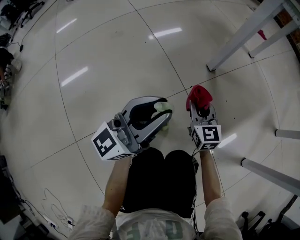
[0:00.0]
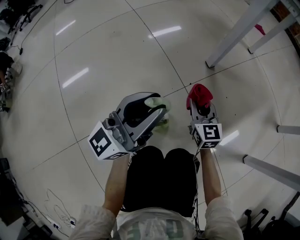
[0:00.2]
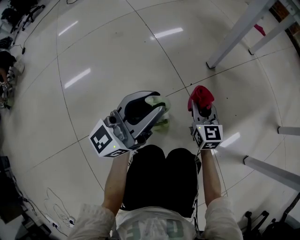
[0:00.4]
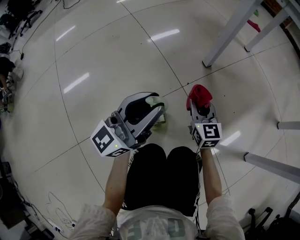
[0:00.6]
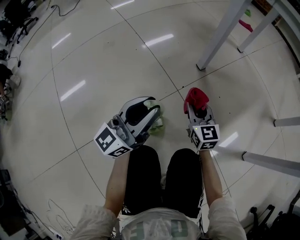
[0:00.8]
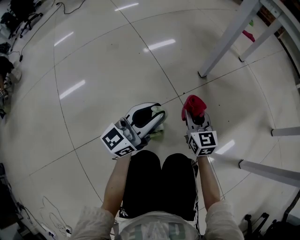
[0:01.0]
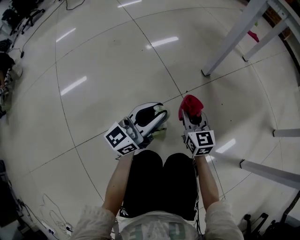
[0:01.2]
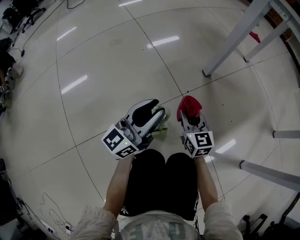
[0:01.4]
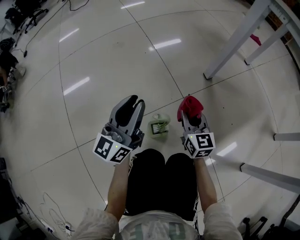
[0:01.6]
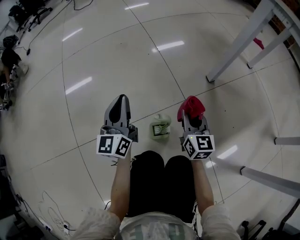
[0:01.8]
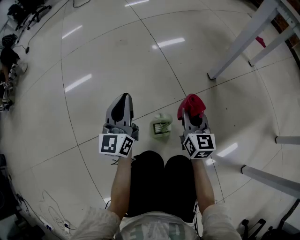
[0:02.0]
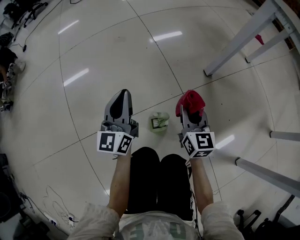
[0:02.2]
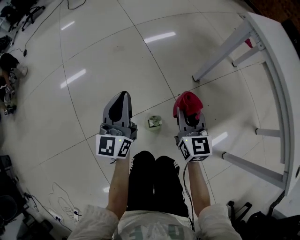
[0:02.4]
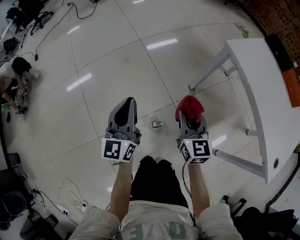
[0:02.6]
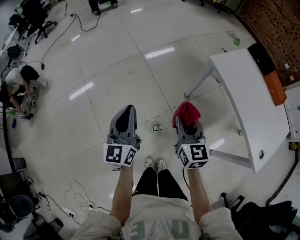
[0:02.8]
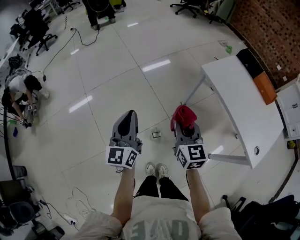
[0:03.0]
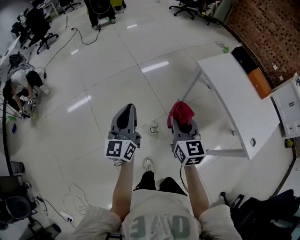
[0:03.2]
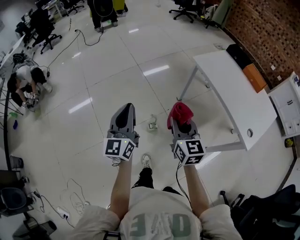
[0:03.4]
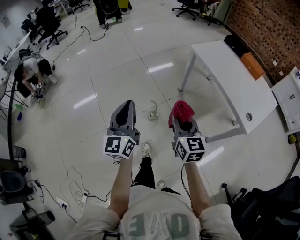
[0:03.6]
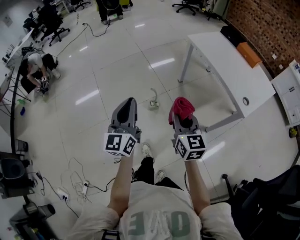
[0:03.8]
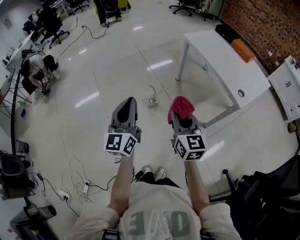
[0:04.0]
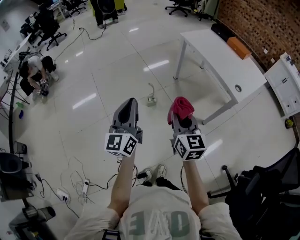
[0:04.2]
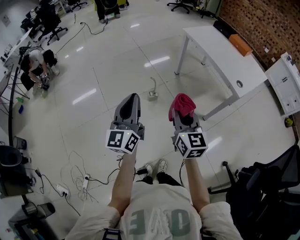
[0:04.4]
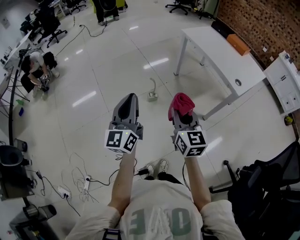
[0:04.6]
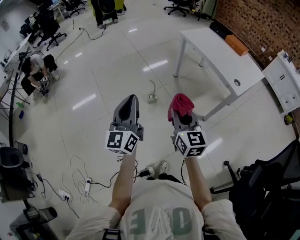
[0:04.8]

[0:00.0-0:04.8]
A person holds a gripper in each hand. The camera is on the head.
0:00.0 to 0:01.6: The left gripper travels to the left and downward by about 10 cm, and rotates approximately 30 degrees.
0:01.6 to 0:03.2: Both grippers move upward, some 60 cm.
0:03.2 to 0:04.8: The two grippers travel together, backward, approximately 50 cm.

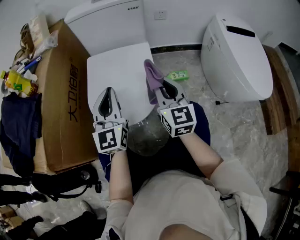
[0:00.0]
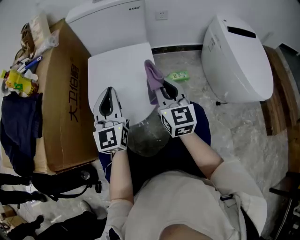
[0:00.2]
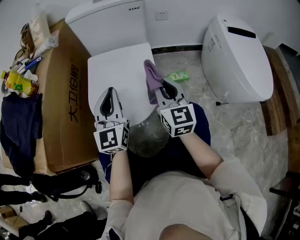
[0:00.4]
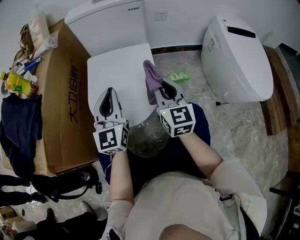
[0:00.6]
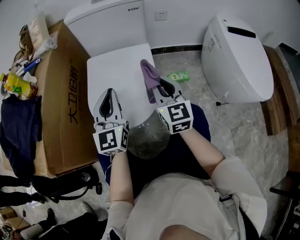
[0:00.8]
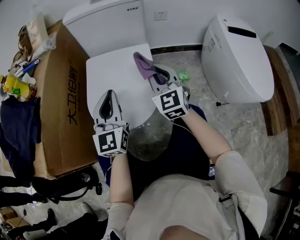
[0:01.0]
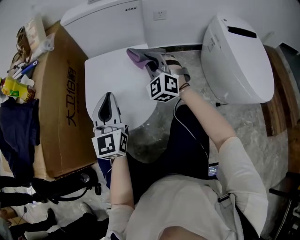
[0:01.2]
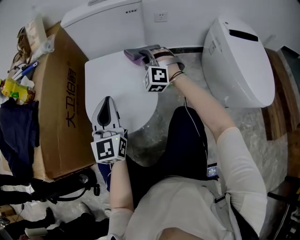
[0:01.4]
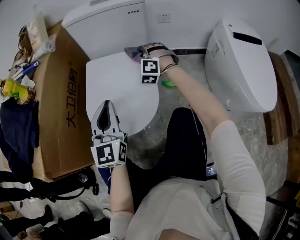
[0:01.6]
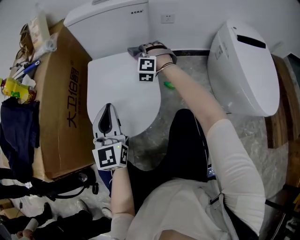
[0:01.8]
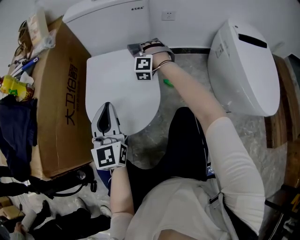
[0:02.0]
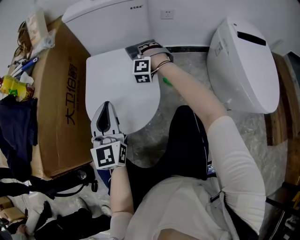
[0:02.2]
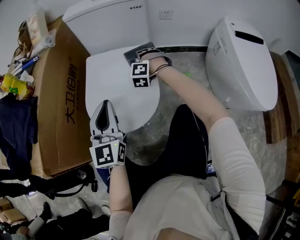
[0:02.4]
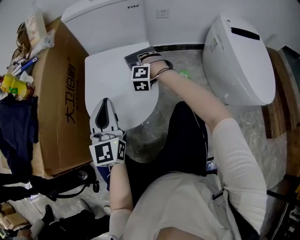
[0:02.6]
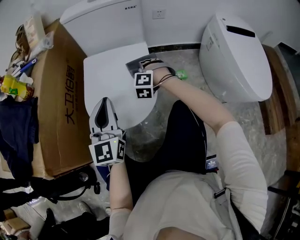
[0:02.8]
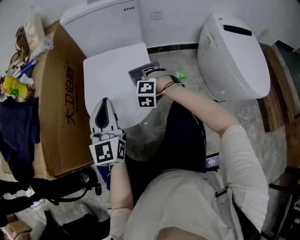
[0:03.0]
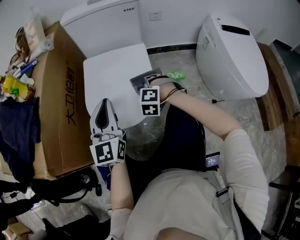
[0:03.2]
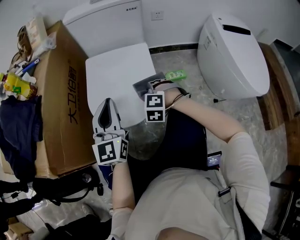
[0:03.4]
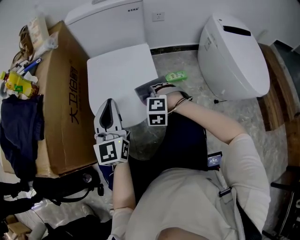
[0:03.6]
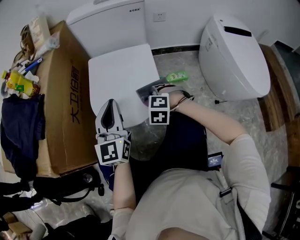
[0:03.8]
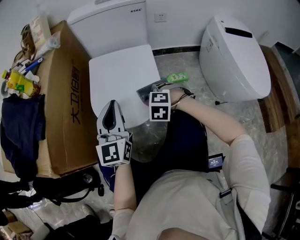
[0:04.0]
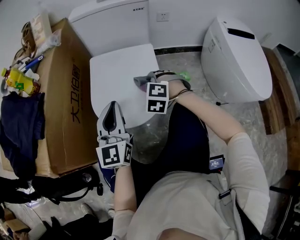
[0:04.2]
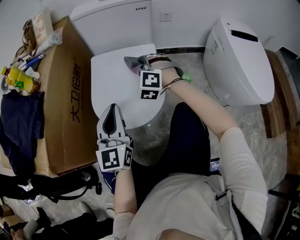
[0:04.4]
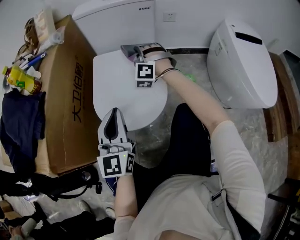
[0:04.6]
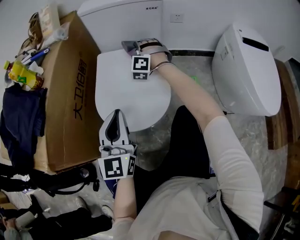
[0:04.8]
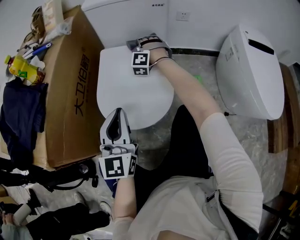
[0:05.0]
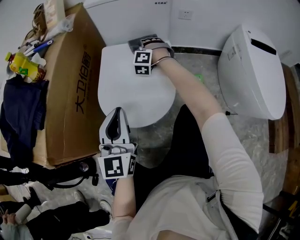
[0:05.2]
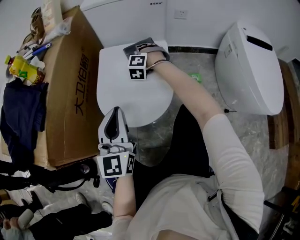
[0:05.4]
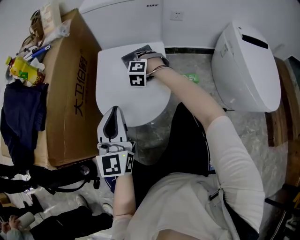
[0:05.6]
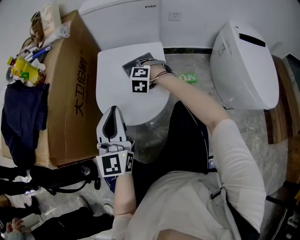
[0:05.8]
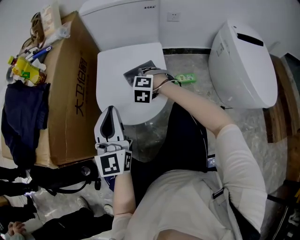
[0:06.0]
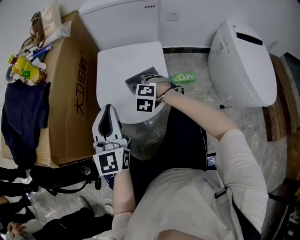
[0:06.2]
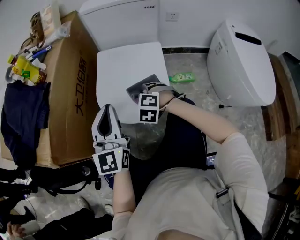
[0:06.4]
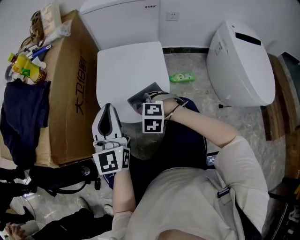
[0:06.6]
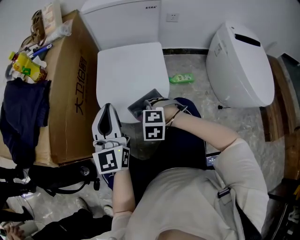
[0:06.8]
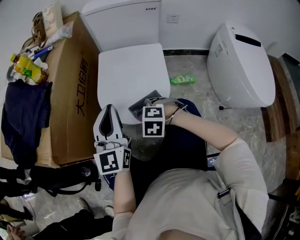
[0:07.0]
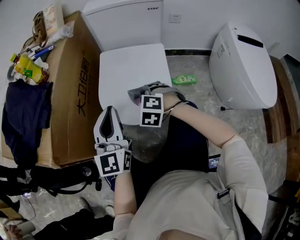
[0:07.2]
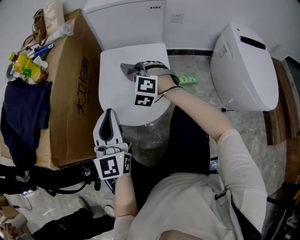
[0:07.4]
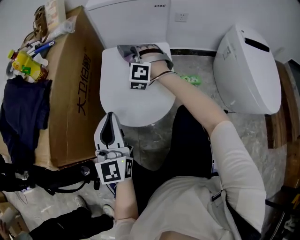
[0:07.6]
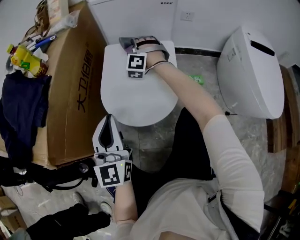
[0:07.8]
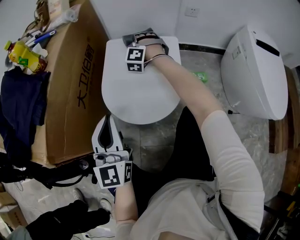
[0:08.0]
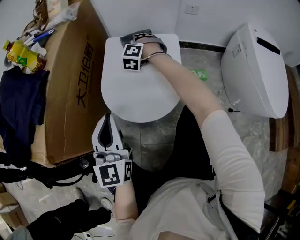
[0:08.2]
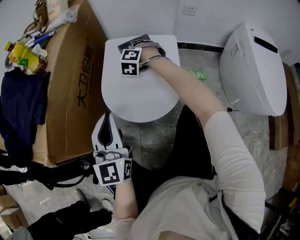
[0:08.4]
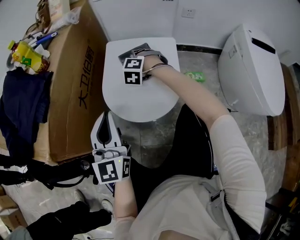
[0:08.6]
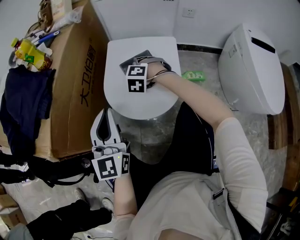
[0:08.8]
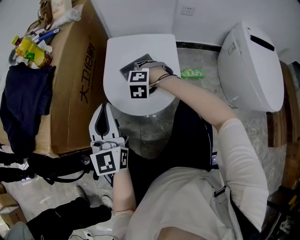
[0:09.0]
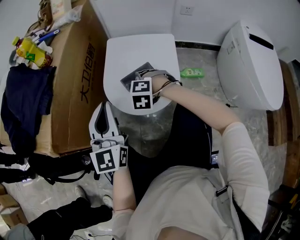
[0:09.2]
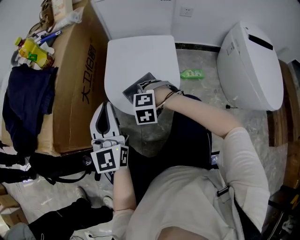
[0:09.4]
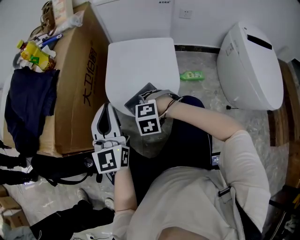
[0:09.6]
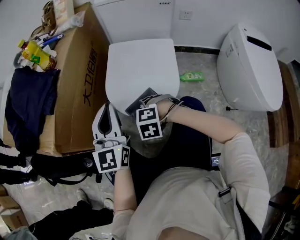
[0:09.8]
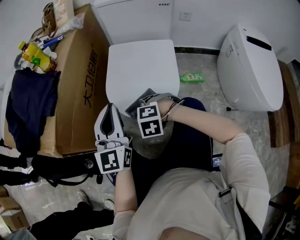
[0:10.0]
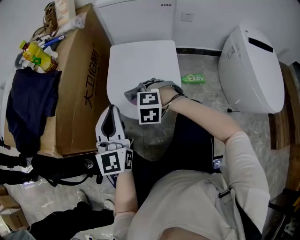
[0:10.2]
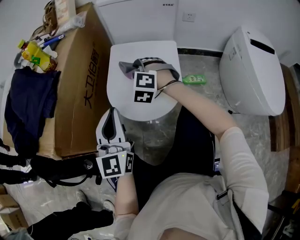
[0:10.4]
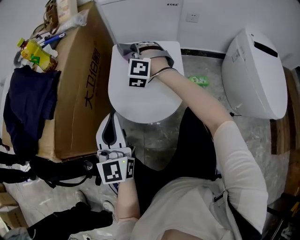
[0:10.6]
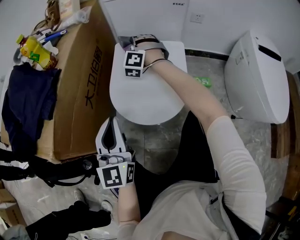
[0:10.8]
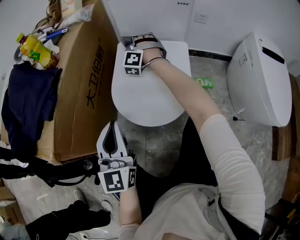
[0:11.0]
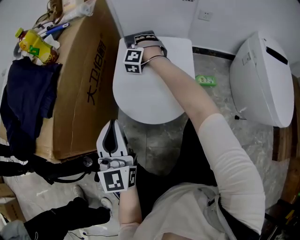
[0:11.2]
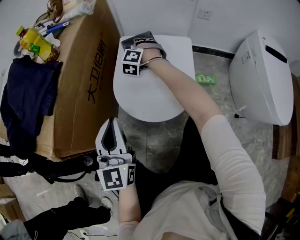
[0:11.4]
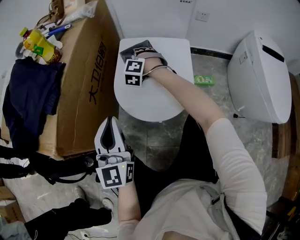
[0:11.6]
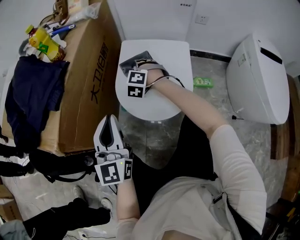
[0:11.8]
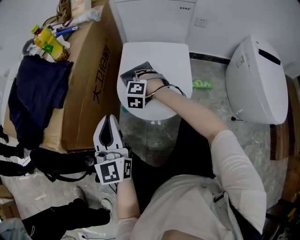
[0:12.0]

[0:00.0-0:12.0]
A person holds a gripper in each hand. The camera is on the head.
0:00.0 to 0:01.6: The right gripper goes roughly 25 cm forward, and twists roughly 70 degrees counterclockwise, seen from behind.
0:01.6 to 0:03.0: The right gripper is displaced backward and downward by some 15 cm, and changes its angle by some 20 degrees.
0:03.0 to 0:04.4: The right gripper is displaced upward by about 10 cm, and reaches roughly 10 cm backward, then returns.
0:04.4 to 0:06.0: The right gripper moves downward, roughly 10 cm, reaches roughly 15 cm forward, then returns, and rotates roughly 20 degrees.
0:06.0 to 0:07.6: The right gripper goes approximately 15 cm upward and forward, and tips its fingers upward by some 30 degrees.
0:07.6 to 0:09.0: The right gripper goes approximately 15 cm backward and downward, and points its fingers roughly 30 degrees further downward.
0:09.0 to 0:10.4: The right gripper goes roughly 10 cm upward, and reaches roughly 15 cm backward, then returns.
0:10.4 to 0:12.0: The left gripper travels to the left by some 5 cm; the right gripper is displaced downward and to the left by approximately 10 cm, and goes forward and returns, roughly 20 cm each way.

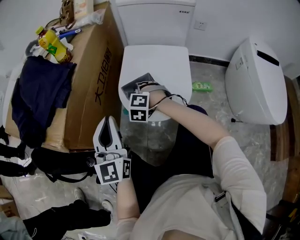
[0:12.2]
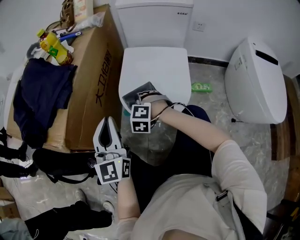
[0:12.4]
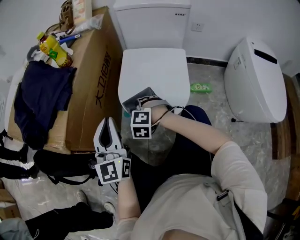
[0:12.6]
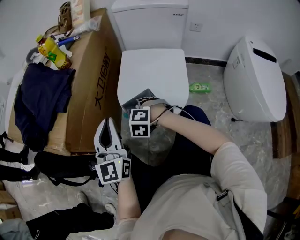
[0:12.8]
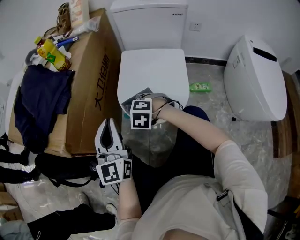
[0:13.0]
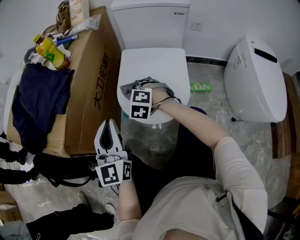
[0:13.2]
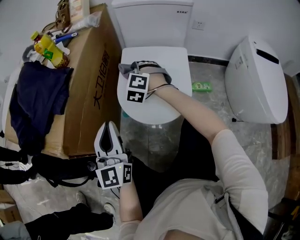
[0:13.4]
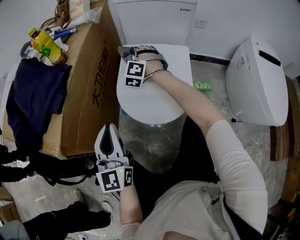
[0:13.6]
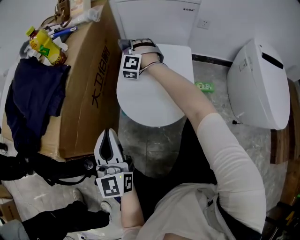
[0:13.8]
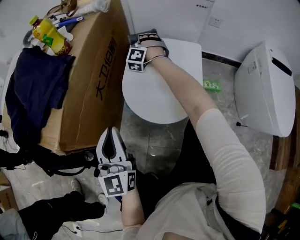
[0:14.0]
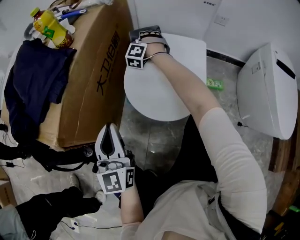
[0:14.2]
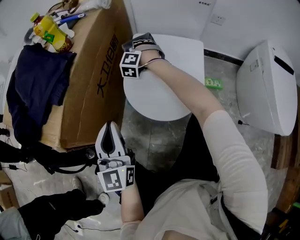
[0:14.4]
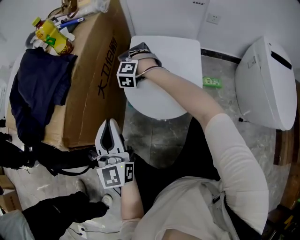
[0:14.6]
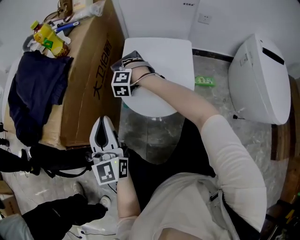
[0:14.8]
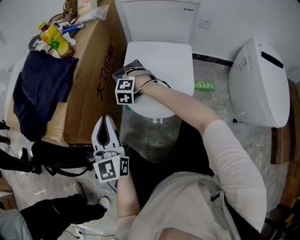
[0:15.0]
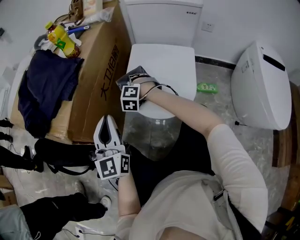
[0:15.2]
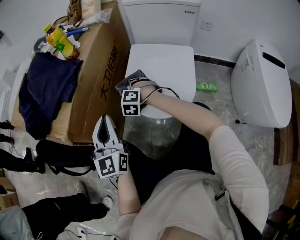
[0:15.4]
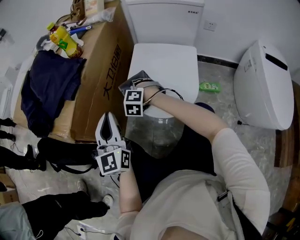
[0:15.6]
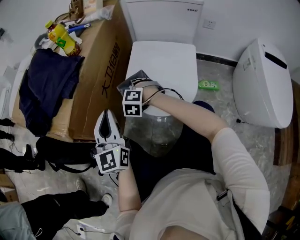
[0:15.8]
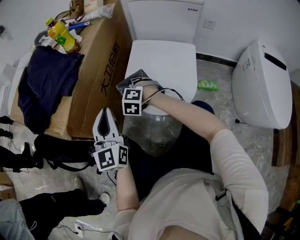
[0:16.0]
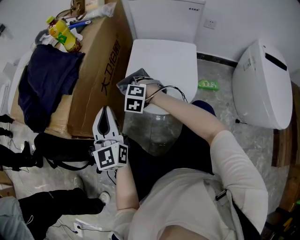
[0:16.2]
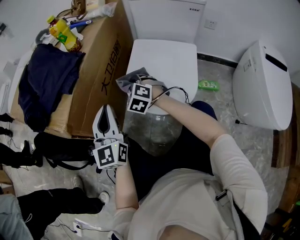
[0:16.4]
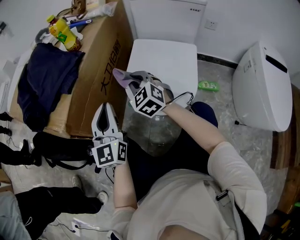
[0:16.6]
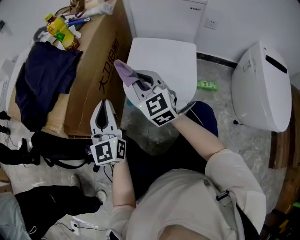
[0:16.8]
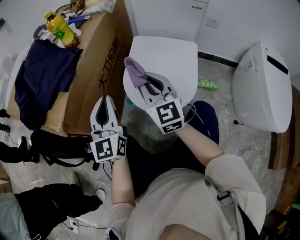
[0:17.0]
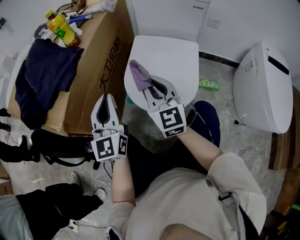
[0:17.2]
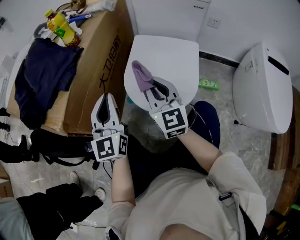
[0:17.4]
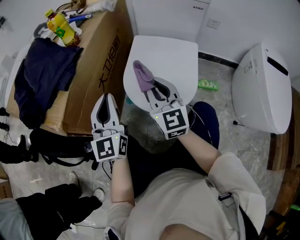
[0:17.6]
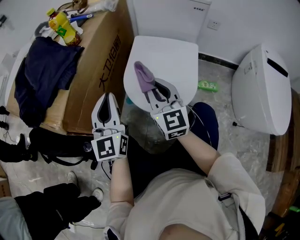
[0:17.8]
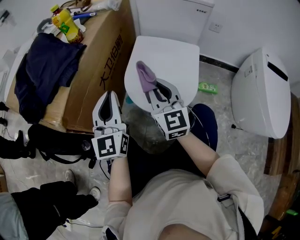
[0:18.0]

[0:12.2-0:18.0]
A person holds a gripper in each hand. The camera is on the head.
0:12.2 to 0:13.6: The right gripper shifts approximately 20 cm forward and upward, and rotates some 30 degrees.
0:13.6 to 0:15.0: The right gripper is displaced backward, downward and to the left by about 15 cm, and swivels approximately 20 degrees.
0:15.0 to 0:16.6: The right gripper shifts some 15 cm upward and backward, and rotates some 40 degrees.
0:16.6 to 0:18.0: The right gripper is displaced backward, to the right and upward by roughly 10 cm, and changes its angle by roughly 30 degrees.

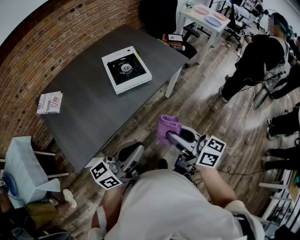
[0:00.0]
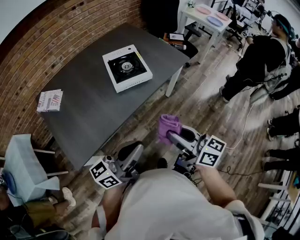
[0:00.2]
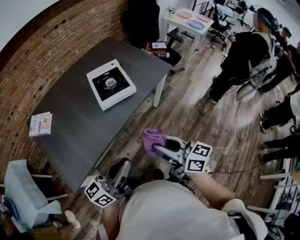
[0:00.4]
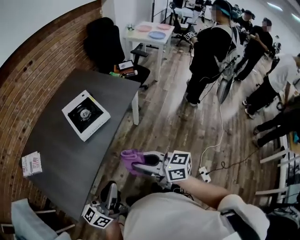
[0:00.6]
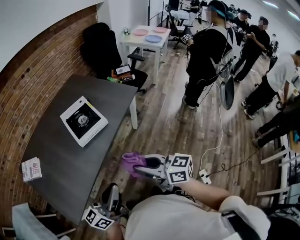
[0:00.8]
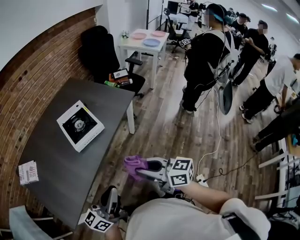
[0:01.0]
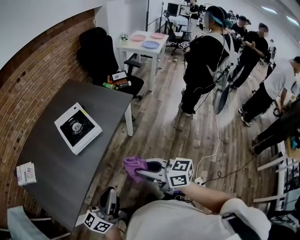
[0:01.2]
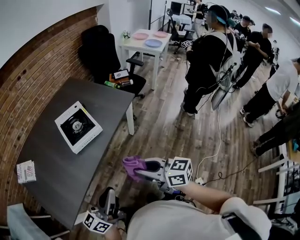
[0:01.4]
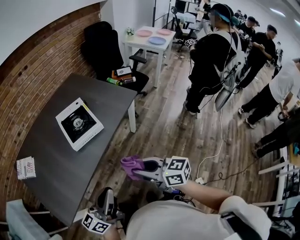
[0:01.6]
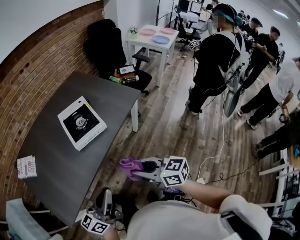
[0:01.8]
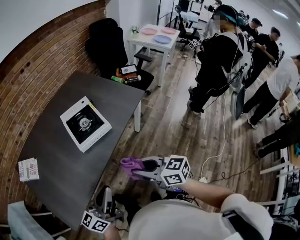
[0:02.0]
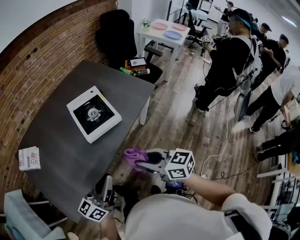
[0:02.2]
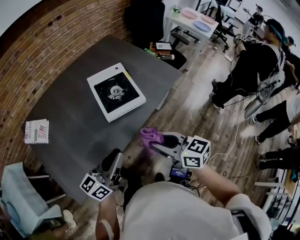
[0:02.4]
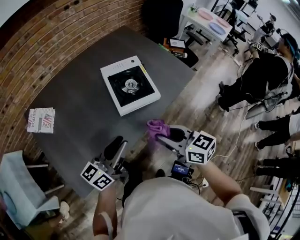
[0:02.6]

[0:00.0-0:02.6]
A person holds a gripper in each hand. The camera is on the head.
0:00.0 to 0:01.2: Both grippers travel together to the right, roughly 5 cm.
0:01.2 to 0:02.6: The grippers both shift forward and to the left by some 25 cm. The left gripper opens.
